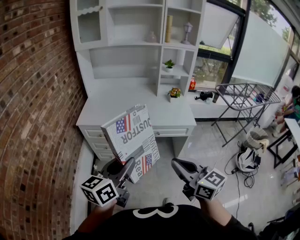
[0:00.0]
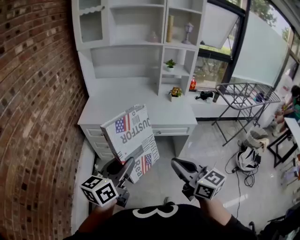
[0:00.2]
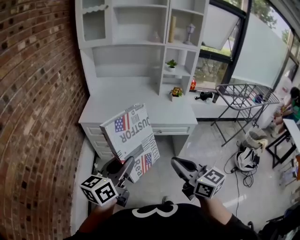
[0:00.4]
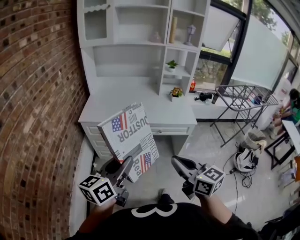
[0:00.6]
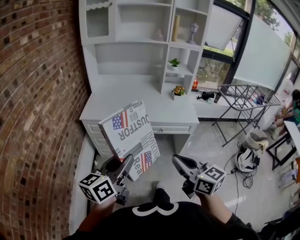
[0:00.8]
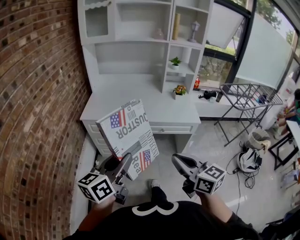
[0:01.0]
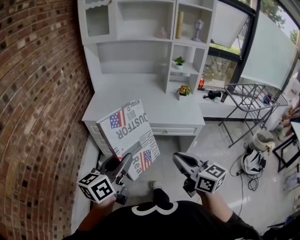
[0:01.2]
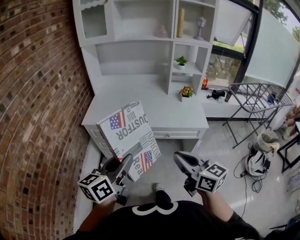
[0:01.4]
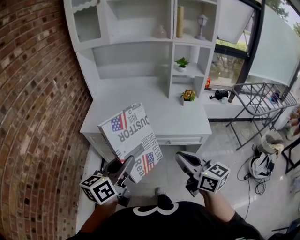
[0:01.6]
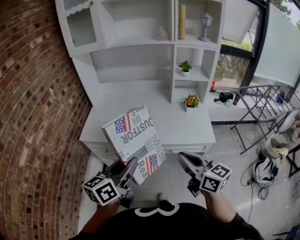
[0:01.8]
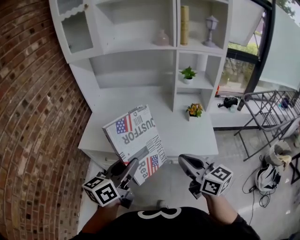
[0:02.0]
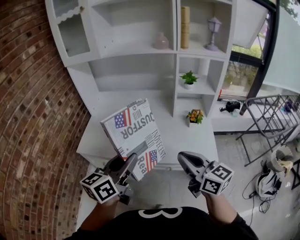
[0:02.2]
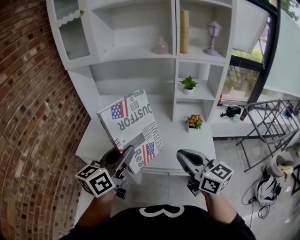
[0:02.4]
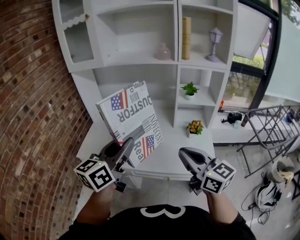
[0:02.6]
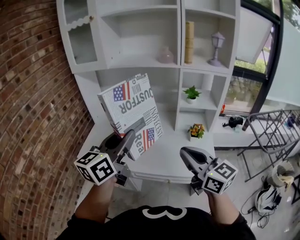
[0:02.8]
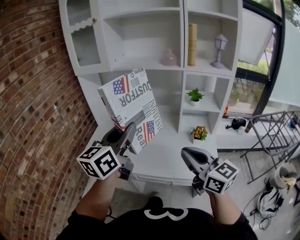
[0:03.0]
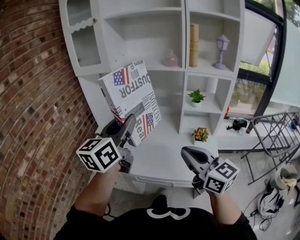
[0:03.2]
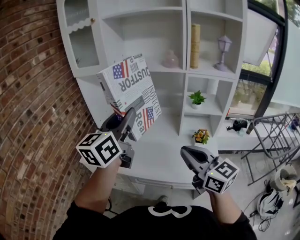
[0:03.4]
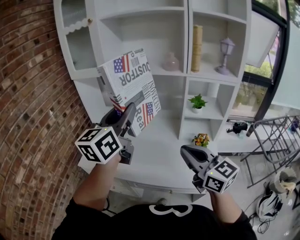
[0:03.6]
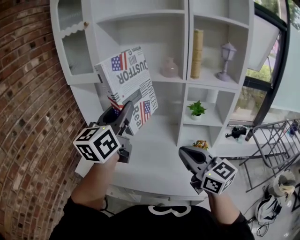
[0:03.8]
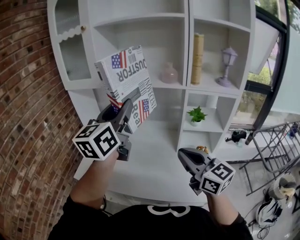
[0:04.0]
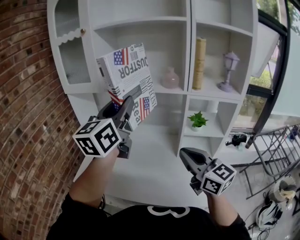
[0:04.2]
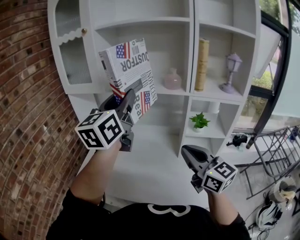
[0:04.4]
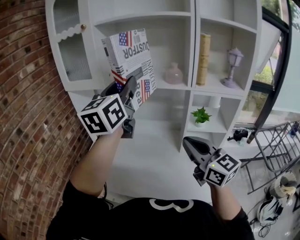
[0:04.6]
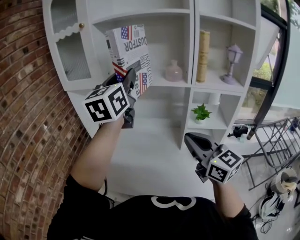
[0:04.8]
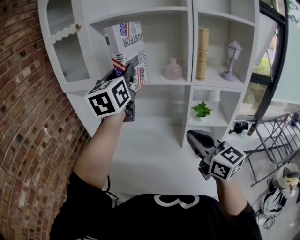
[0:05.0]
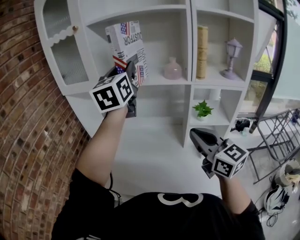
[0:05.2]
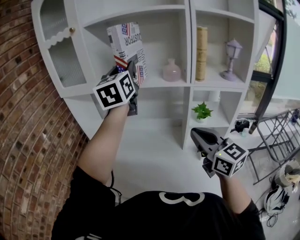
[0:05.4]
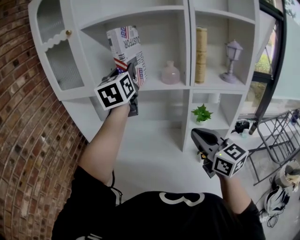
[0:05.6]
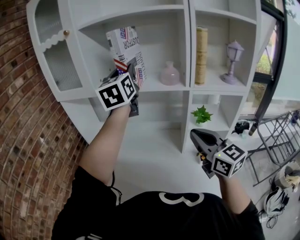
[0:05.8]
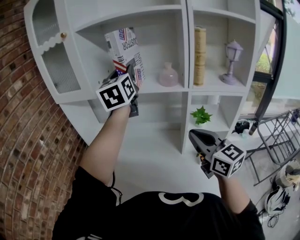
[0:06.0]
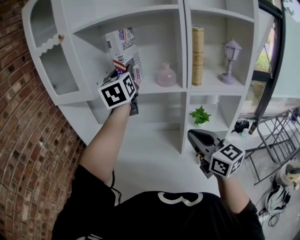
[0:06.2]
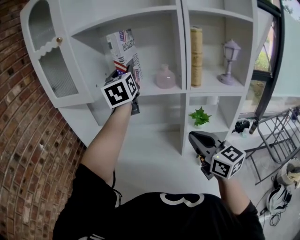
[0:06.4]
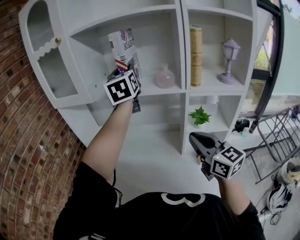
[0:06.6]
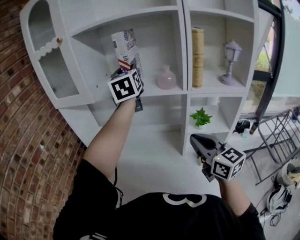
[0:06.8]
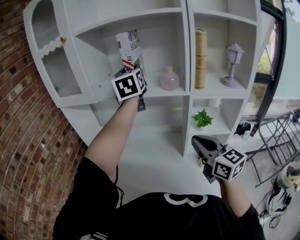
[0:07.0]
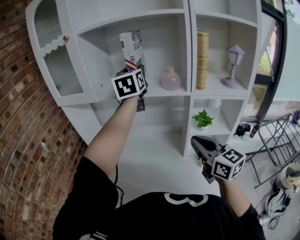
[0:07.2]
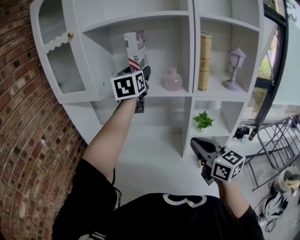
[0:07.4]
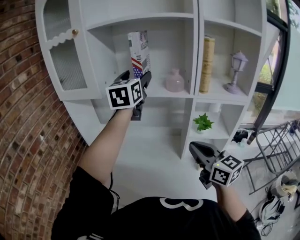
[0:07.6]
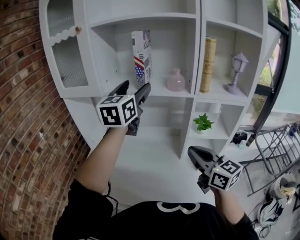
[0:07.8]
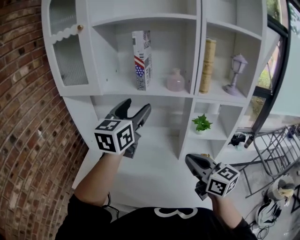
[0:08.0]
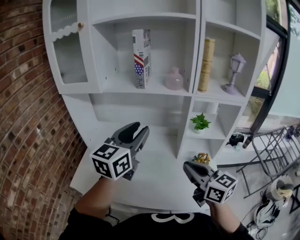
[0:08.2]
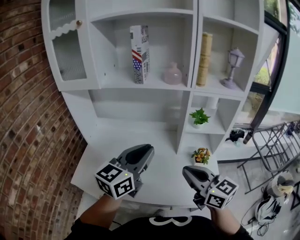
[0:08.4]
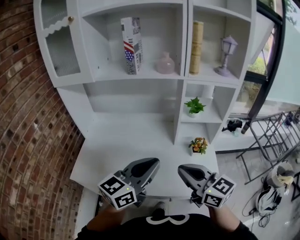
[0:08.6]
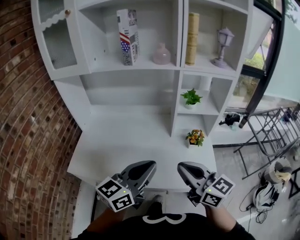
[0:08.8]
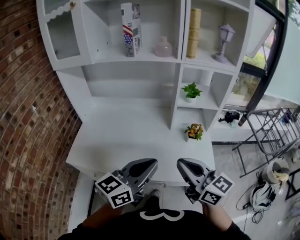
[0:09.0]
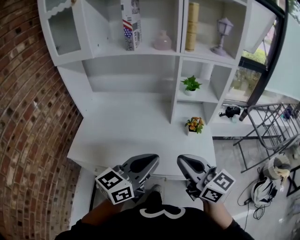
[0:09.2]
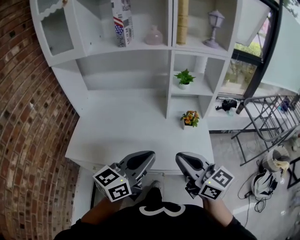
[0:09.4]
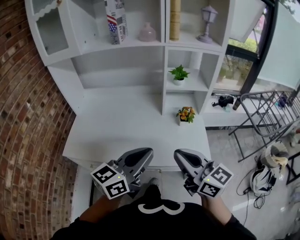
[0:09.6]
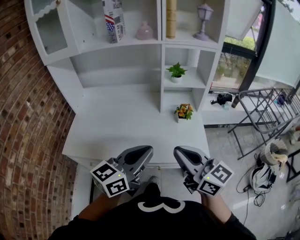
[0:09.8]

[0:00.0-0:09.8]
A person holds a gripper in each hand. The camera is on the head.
0:00.0 to 0:01.4: The two grippers go roughly 10 cm forward.
0:01.4 to 0:02.8: The right gripper is displaced forward and to the right by some 30 cm; the left gripper moves forward and upward, roughly 35 cm.
0:02.8 to 0:04.2: The right gripper travels forward by roughly 15 cm; the left gripper heads forward and upward, covering approximately 25 cm.
0:04.2 to 0:05.6: The right gripper goes some 5 cm forward. Meanwhile the left gripper moves forward, about 15 cm.
0:05.6 to 0:07.0: The left gripper heads forward, covering approximately 5 cm.
0:07.0 to 0:08.4: The left gripper goes about 35 cm backward and downward, rotates some 40 degrees, and opens and closes again. The right gripper travels backward, downward and to the left by some 15 cm.
0:08.4 to 0:09.8: The right gripper moves backward, about 15 cm. The left gripper shifts some 20 cm backward, downward and to the right.

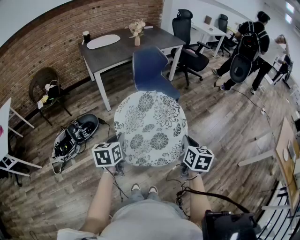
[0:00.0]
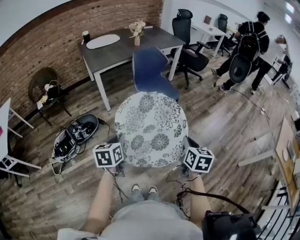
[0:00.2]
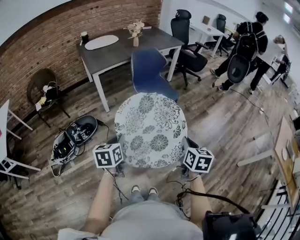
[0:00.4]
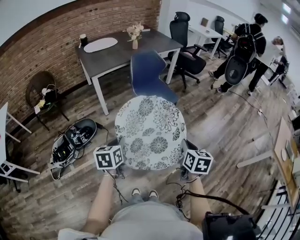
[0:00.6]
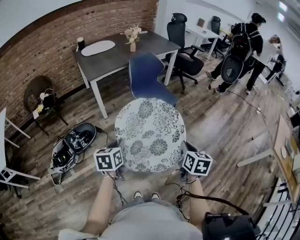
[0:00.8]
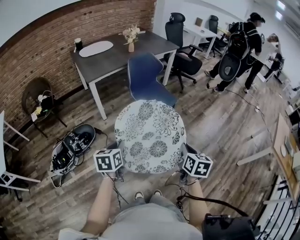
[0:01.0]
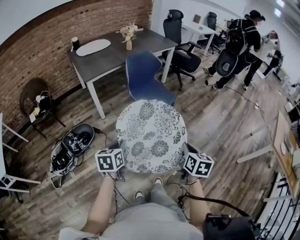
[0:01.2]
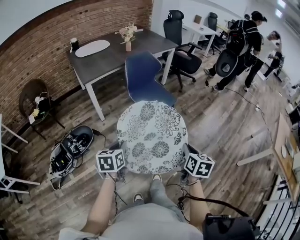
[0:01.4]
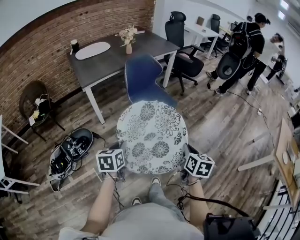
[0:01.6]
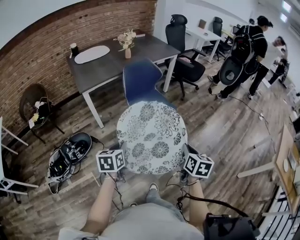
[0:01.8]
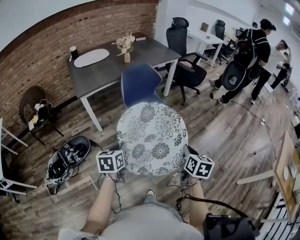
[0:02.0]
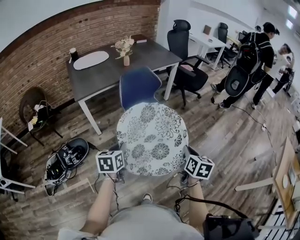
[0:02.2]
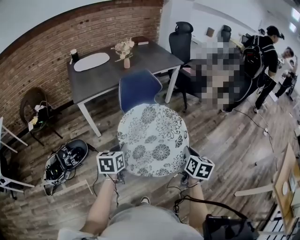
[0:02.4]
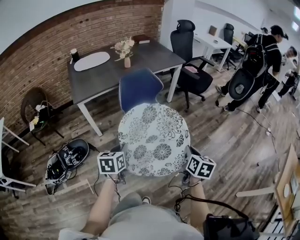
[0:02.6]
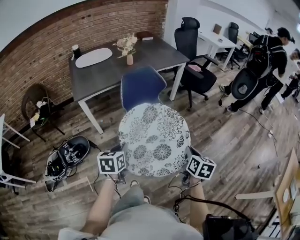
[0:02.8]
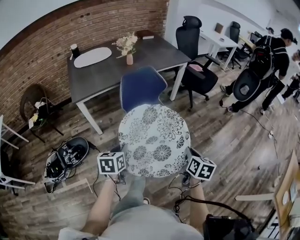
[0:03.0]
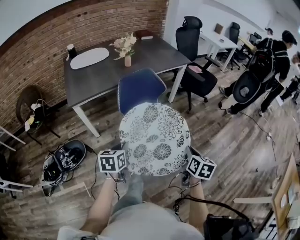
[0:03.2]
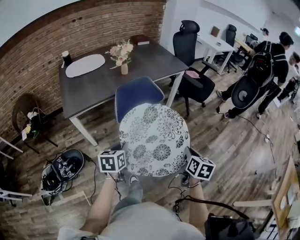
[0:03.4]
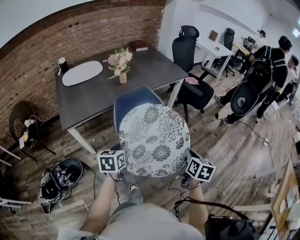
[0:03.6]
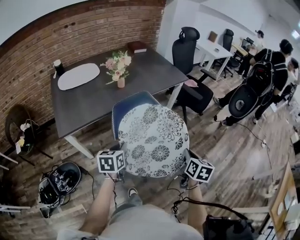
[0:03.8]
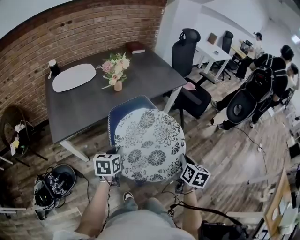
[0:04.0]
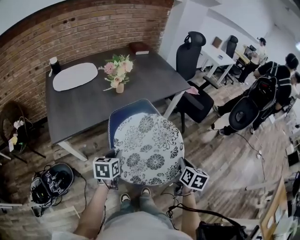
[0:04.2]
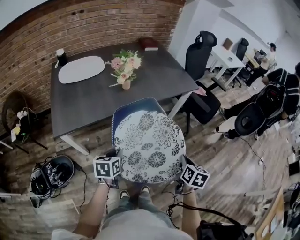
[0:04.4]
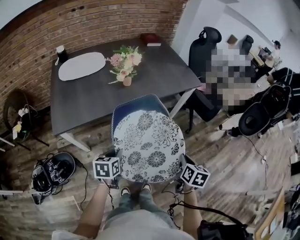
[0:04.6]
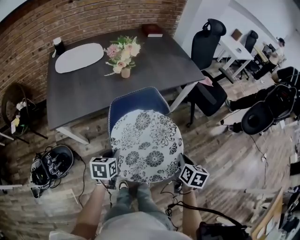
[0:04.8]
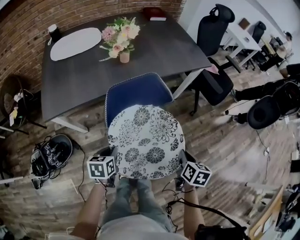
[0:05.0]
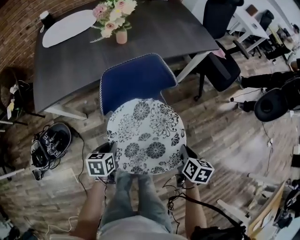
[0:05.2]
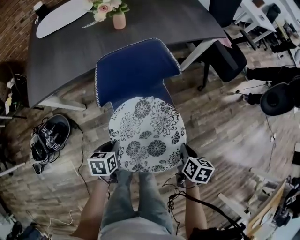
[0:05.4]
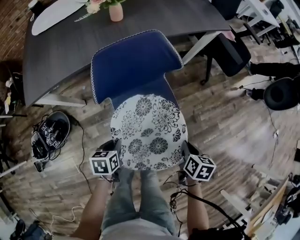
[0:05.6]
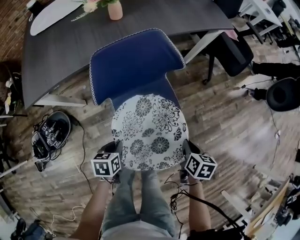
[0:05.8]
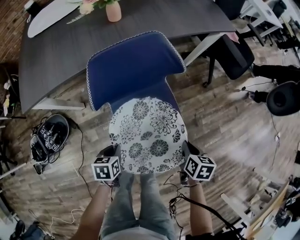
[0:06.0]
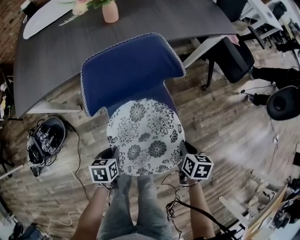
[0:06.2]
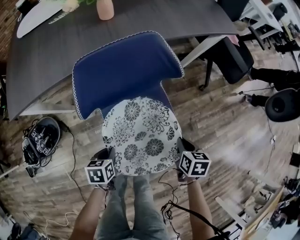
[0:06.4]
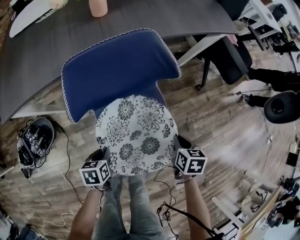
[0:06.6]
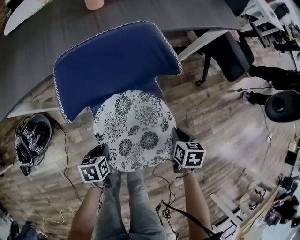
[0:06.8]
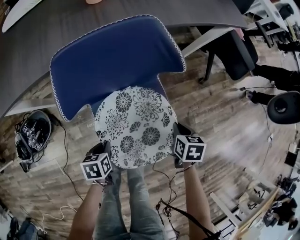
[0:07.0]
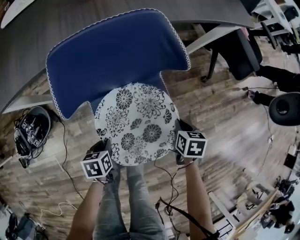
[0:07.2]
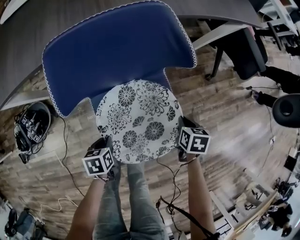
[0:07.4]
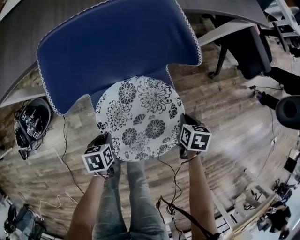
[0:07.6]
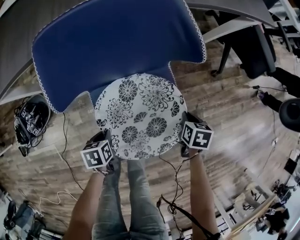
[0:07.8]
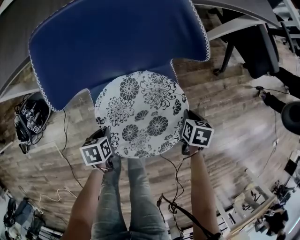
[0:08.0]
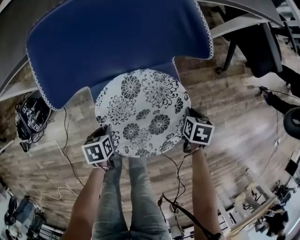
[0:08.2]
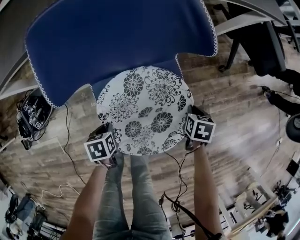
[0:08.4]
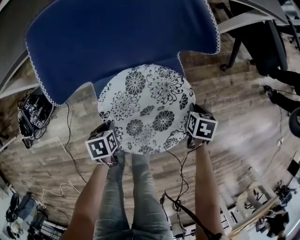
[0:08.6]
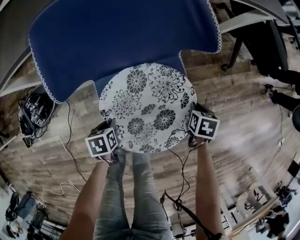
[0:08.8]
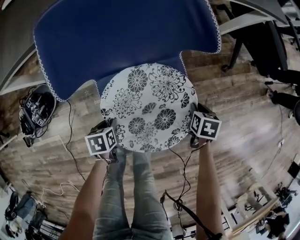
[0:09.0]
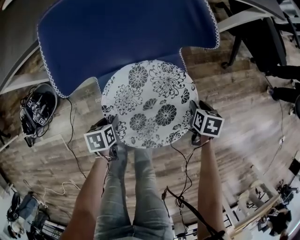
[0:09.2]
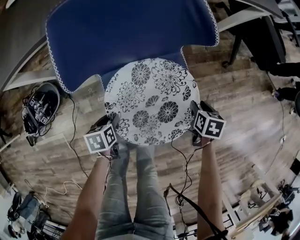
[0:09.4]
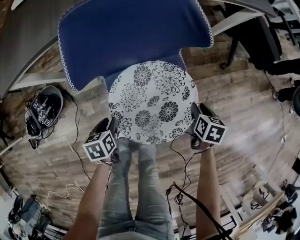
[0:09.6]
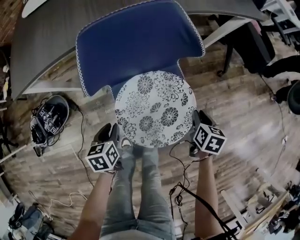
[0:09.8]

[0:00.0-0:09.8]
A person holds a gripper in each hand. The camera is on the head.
0:00.0 to 0:01.4: The left gripper shifts some 10 cm forward, while the right gripper travels forward by approximately 5 cm.
0:01.4 to 0:02.8: The right gripper is displaced forward by roughly 30 cm; the left gripper travels forward and to the right by approximately 25 cm.
0:02.8 to 0:04.2: Both grippers move forward, approximately 35 cm.
0:04.2 to 0:05.6: Both grippers move downward, some 25 cm. The left gripper turns by approximately 20 degrees; the right gripper changes its angle by some 20 degrees.
0:05.6 to 0:07.0: The right gripper is displaced forward and downward by approximately 20 cm. Meanwhile the left gripper travels downward and forward by approximately 15 cm.
0:07.0 to 0:08.4: Both grippers move downward, approximately 10 cm.
0:08.4 to 0:09.8: Both grippers move upward, about 15 cm. The left gripper swivels roughly 20 degrees, and opens up, while the right gripper rotates roughly 20 degrees.

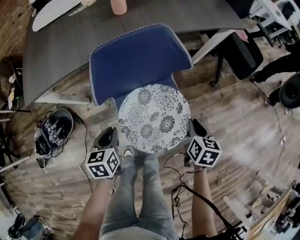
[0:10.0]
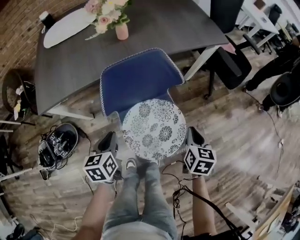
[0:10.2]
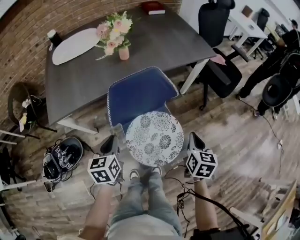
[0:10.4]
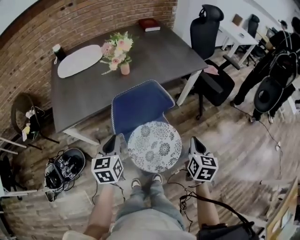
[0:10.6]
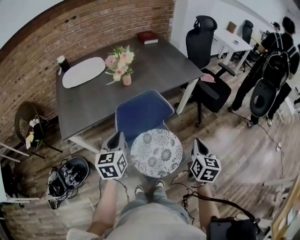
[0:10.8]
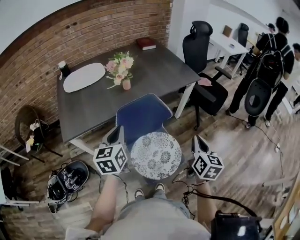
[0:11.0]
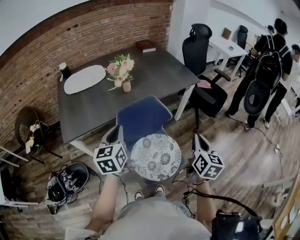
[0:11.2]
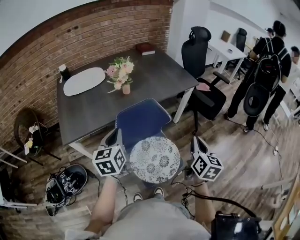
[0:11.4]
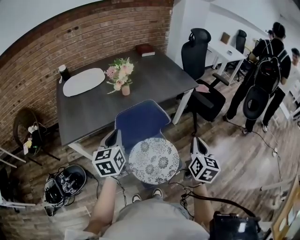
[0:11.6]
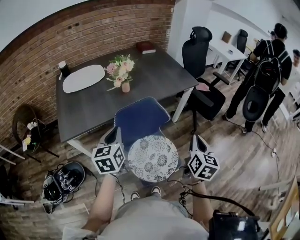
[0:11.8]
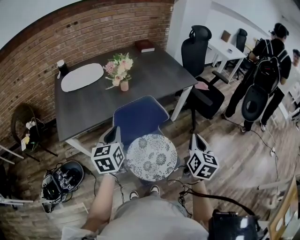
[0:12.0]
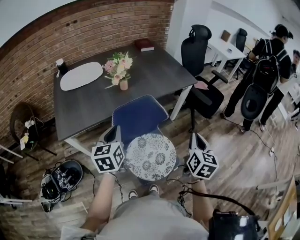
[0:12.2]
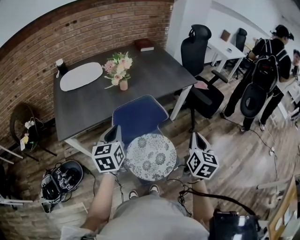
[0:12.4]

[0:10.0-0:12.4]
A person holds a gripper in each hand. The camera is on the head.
0:10.0 to 0:11.2: The two grippers go approximately 35 cm upward. The right gripper tips its fingers upward by approximately 30 degrees; the left gripper tilts its fingers some 30 degrees upward.
0:11.2 to 0:12.4: The grippers stay close to where they were, moving slightly.

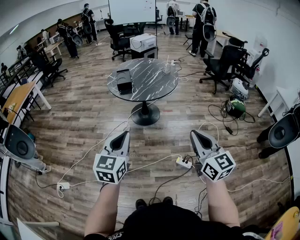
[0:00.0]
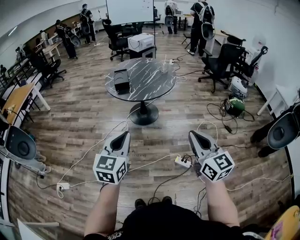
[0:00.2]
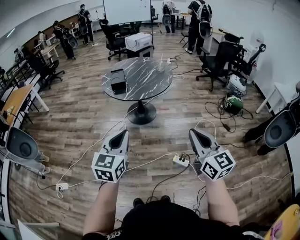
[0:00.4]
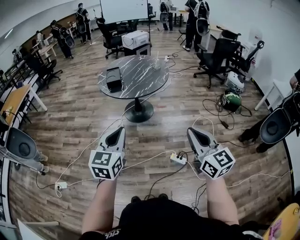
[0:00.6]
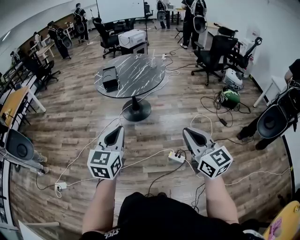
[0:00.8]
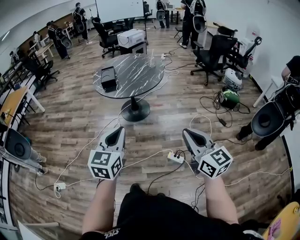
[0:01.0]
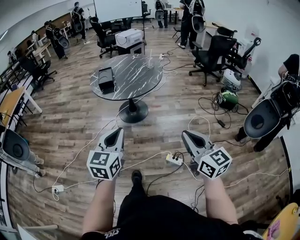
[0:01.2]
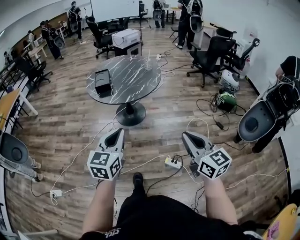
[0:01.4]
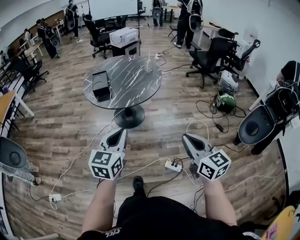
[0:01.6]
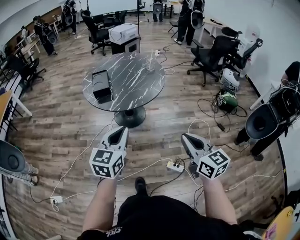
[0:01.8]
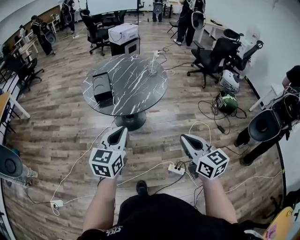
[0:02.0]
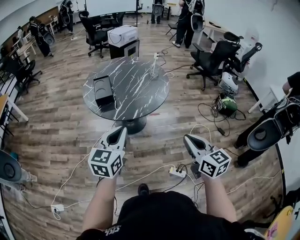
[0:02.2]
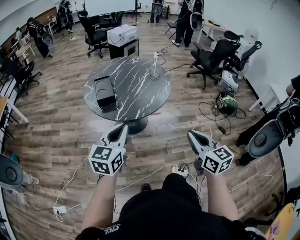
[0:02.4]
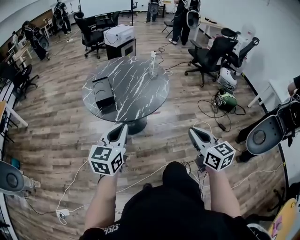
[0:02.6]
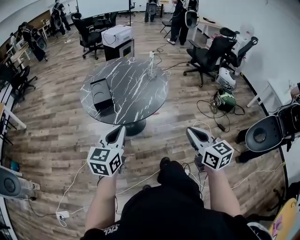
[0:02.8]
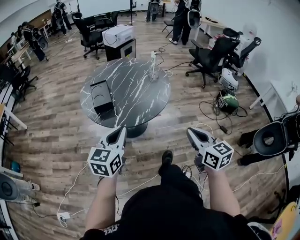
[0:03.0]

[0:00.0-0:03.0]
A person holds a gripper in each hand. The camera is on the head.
0:00.0 to 0:01.6: The left gripper travels forward and to the right by some 20 cm. Meanwhile the right gripper goes some 15 cm forward, to the right and downward.
0:01.6 to 0:03.0: The right gripper moves forward, approximately 20 cm, while the left gripper moves forward and to the left, some 25 cm.
